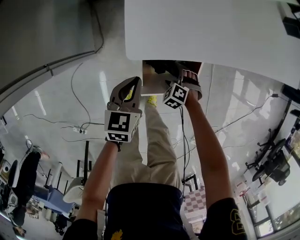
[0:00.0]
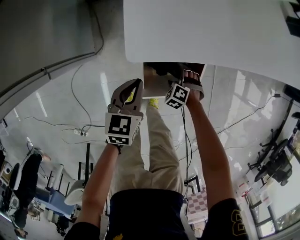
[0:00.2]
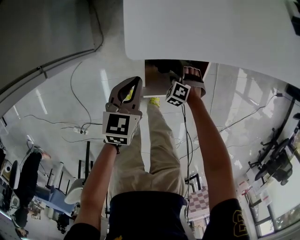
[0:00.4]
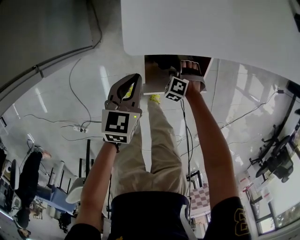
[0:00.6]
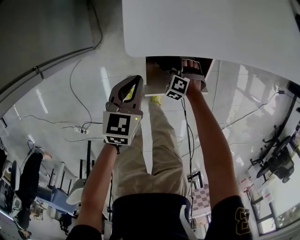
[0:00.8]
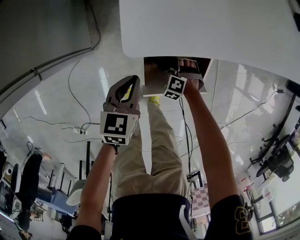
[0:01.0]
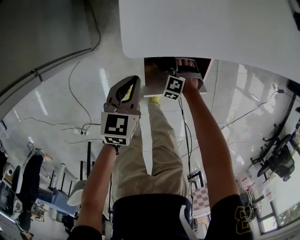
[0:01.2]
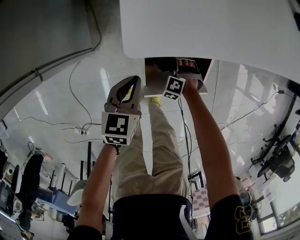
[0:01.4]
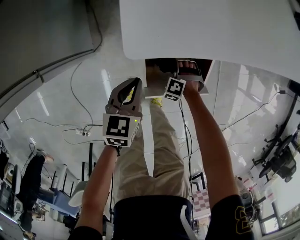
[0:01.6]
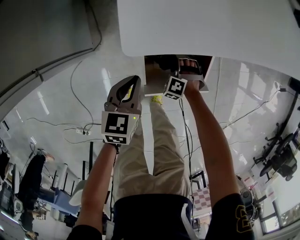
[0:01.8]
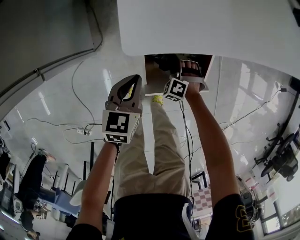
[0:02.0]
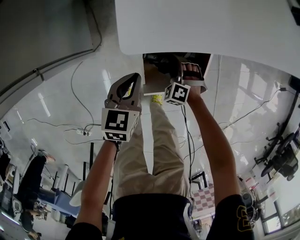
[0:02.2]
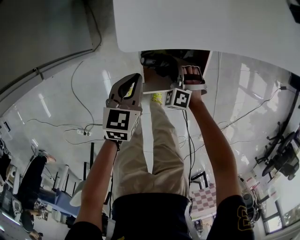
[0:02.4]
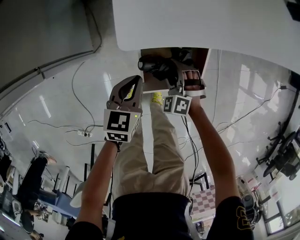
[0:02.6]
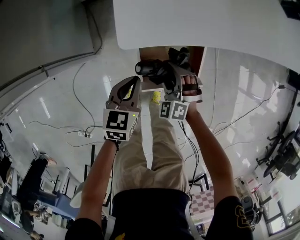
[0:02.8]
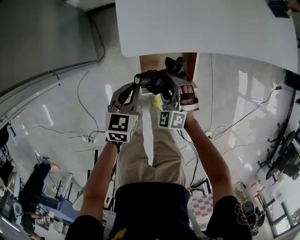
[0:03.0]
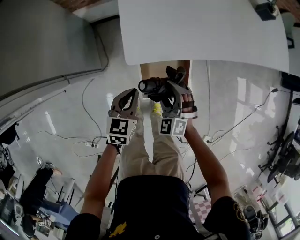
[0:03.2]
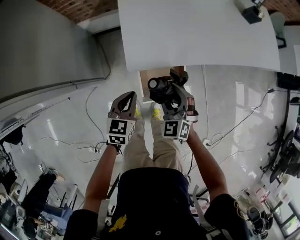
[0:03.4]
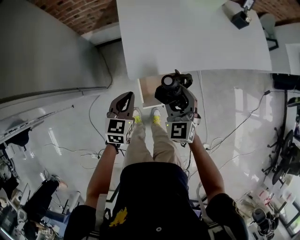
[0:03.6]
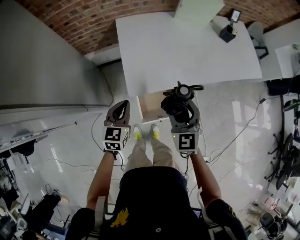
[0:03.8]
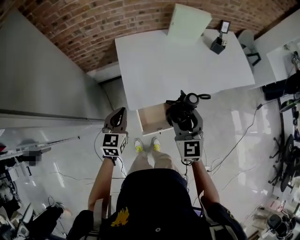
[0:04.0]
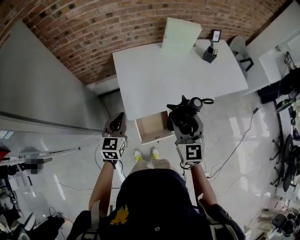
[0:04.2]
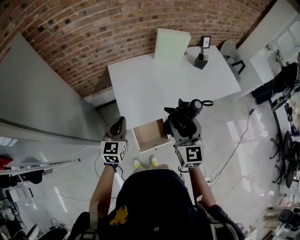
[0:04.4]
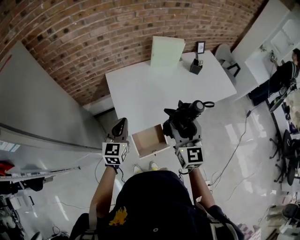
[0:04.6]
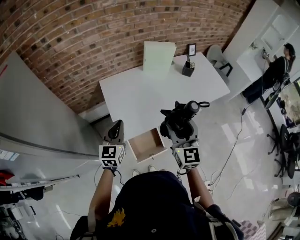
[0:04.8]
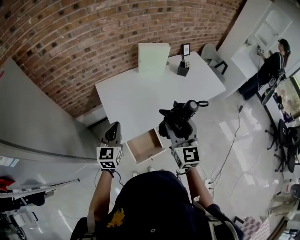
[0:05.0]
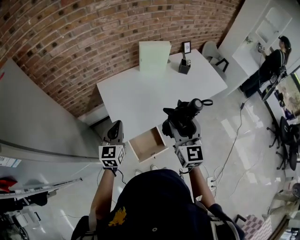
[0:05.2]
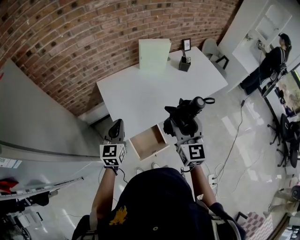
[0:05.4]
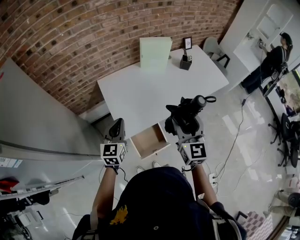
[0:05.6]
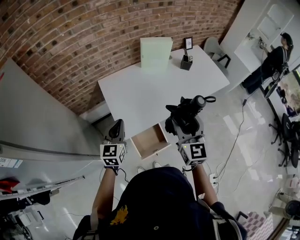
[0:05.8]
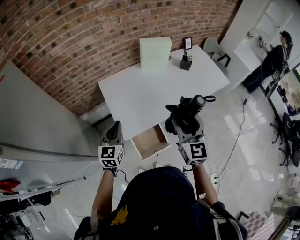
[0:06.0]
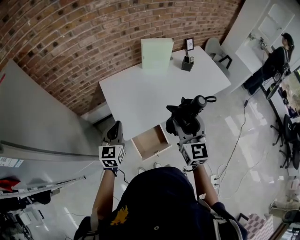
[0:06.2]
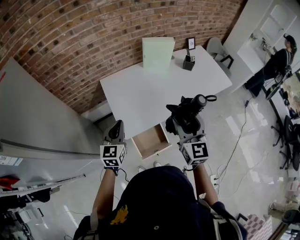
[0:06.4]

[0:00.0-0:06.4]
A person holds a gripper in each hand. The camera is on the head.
0:00.0 to 0:01.6: The grippers both shift downward by some 5 cm. The right gripper turns by approximately 20 degrees.
0:01.6 to 0:03.2: The right gripper goes roughly 35 cm upward, and swivels about 40 degrees; the left gripper shifts roughly 15 cm upward.
0:03.2 to 0:04.8: Both grippers move upward, about 40 cm. The right gripper tips its fingers upward by approximately 40 degrees, while the left gripper changes its angle by approximately 30 degrees.
0:04.8 to 0:06.4: The grippers move only a little.

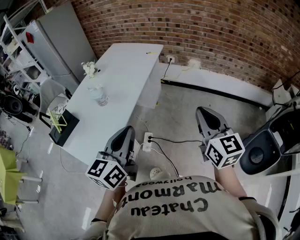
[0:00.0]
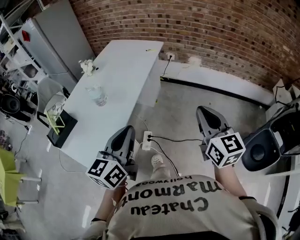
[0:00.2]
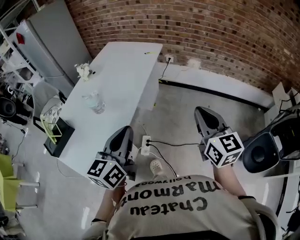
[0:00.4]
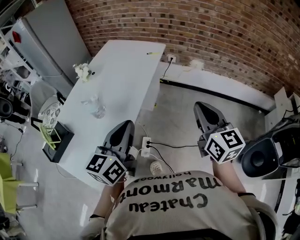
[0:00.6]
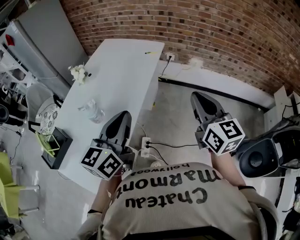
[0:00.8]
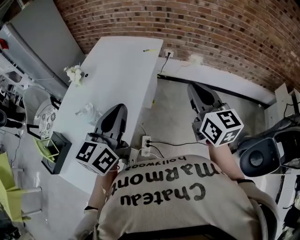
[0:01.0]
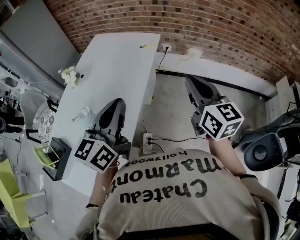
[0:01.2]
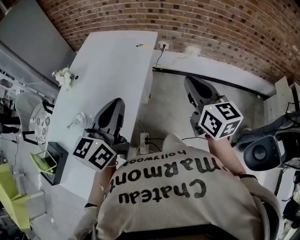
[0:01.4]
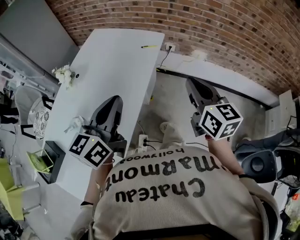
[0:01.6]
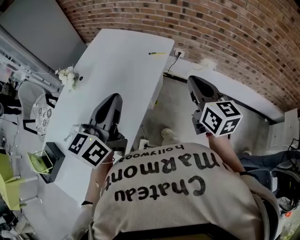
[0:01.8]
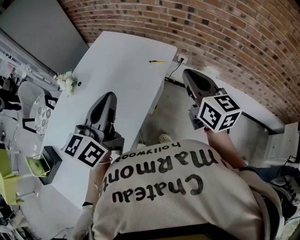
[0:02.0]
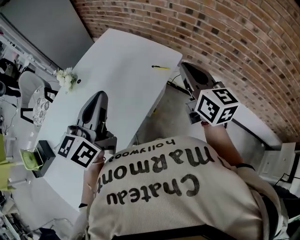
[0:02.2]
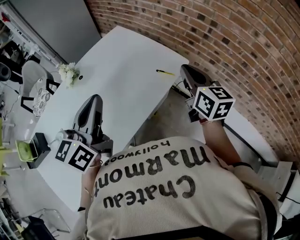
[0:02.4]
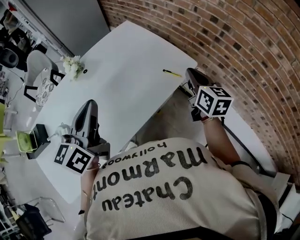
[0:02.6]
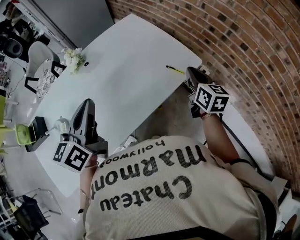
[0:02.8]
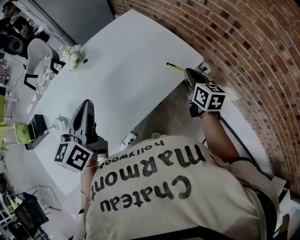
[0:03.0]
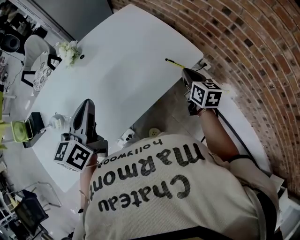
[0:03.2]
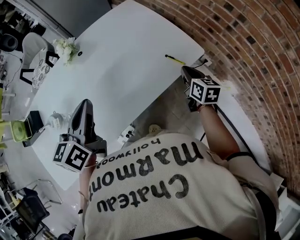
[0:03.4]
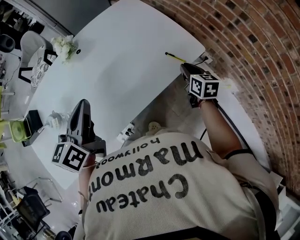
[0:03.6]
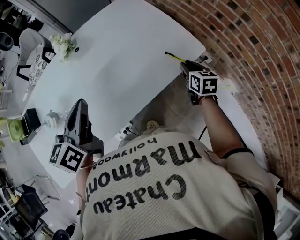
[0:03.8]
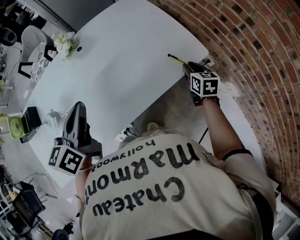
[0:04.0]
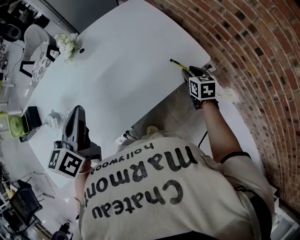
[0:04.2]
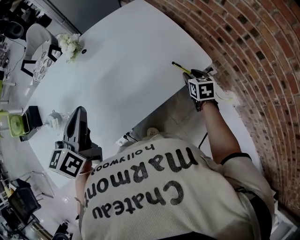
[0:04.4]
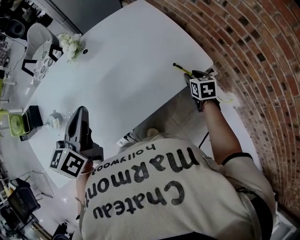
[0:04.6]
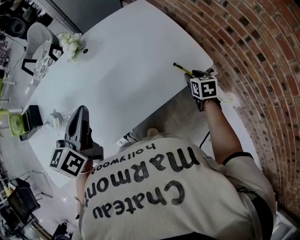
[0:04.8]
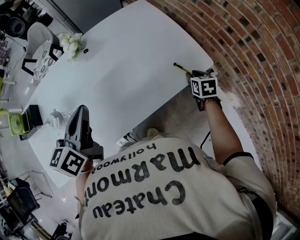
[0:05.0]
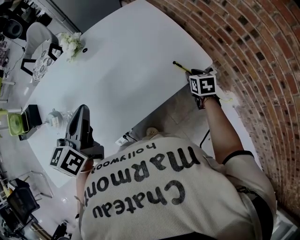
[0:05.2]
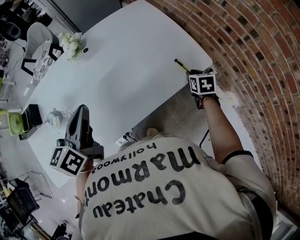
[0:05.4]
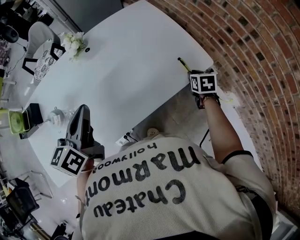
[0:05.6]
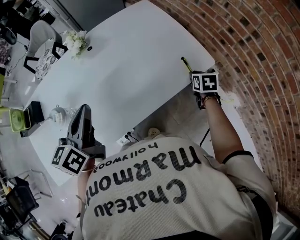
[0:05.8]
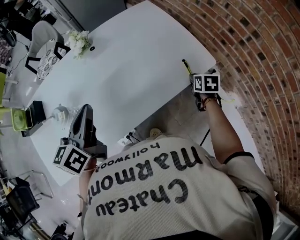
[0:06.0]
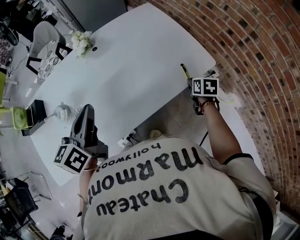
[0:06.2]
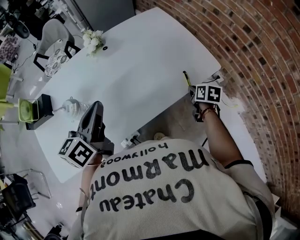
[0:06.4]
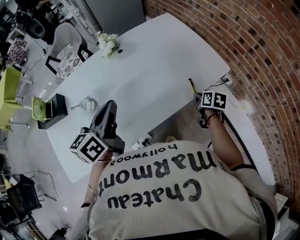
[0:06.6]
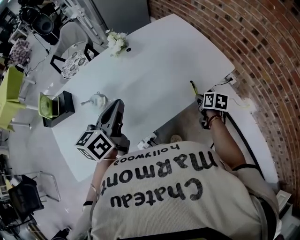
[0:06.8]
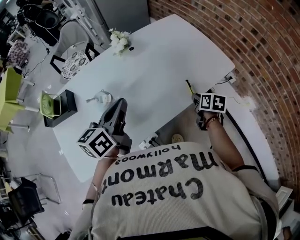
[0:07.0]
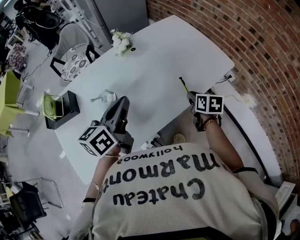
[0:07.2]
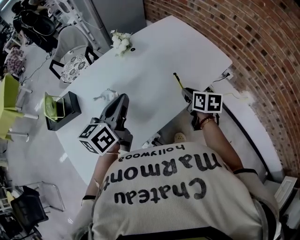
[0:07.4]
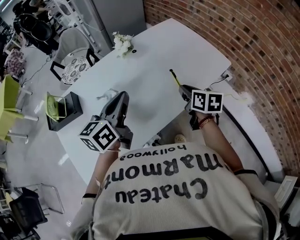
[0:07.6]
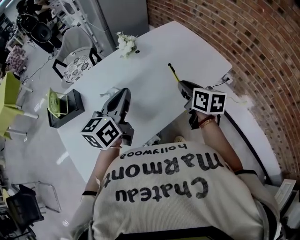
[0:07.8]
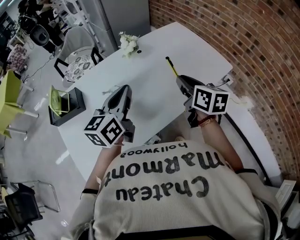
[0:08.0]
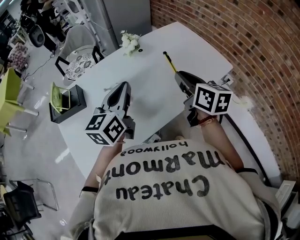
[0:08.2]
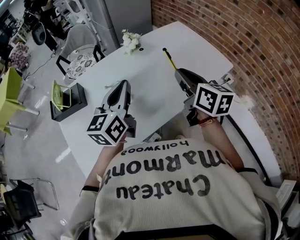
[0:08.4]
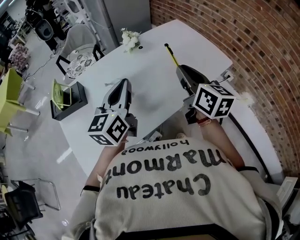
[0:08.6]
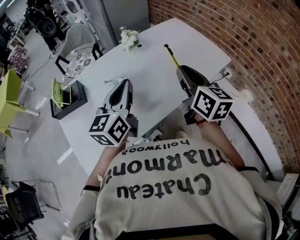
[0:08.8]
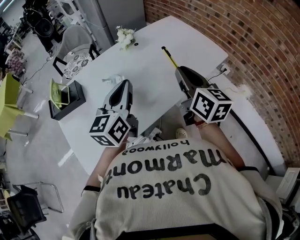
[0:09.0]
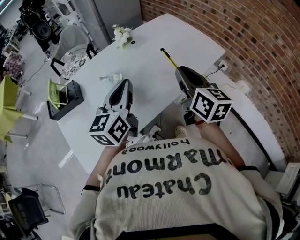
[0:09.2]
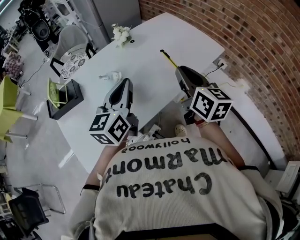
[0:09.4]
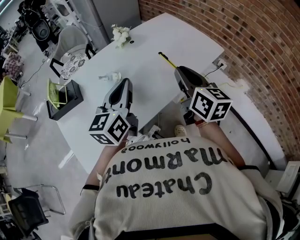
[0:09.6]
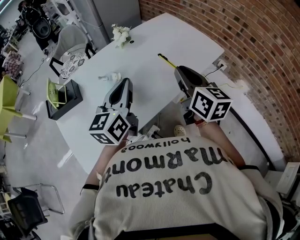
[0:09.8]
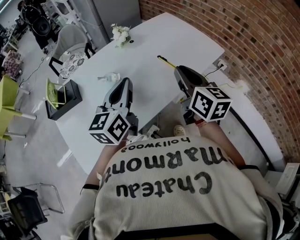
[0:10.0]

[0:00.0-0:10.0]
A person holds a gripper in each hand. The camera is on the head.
0:00.0 to 0:01.4: Both grippers move forward, approximately 35 cm.
0:01.4 to 0:02.8: The right gripper shifts by roughly 40 cm, and swivels about 30 degrees, while the left gripper moves some 20 cm, and rotates about 40 degrees.
0:02.8 to 0:04.2: The left gripper heads downward, covering about 5 cm; the right gripper moves downward, approximately 15 cm, rotates some 30 degrees, and opens up.
0:04.2 to 0:05.8: The right gripper closes its fingers.
0:05.8 to 0:07.2: The left gripper goes approximately 15 cm to the left and backward; the right gripper heads to the left and backward, covering approximately 30 cm.
0:07.2 to 0:08.6: The right gripper moves upward and to the left, approximately 25 cm, and points its fingers about 30 degrees further upward. The left gripper is displaced upward by about 5 cm, and turns by roughly 20 degrees.
0:08.6 to 0:10.0: The right gripper changes place by some 5 cm.

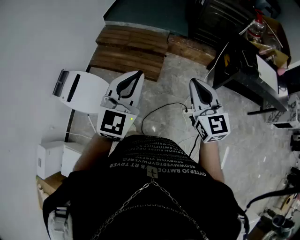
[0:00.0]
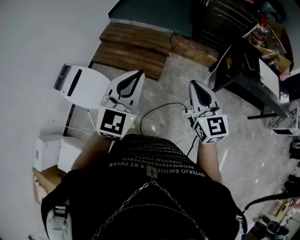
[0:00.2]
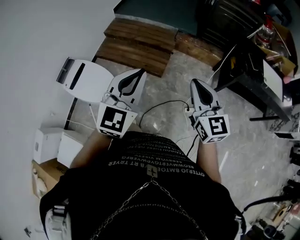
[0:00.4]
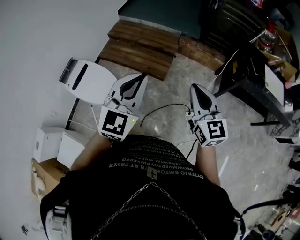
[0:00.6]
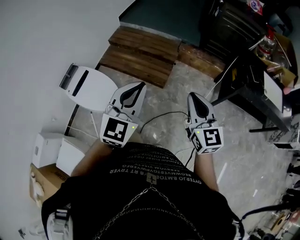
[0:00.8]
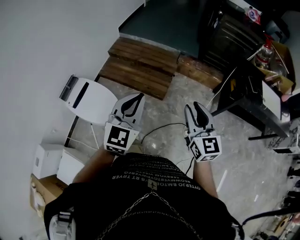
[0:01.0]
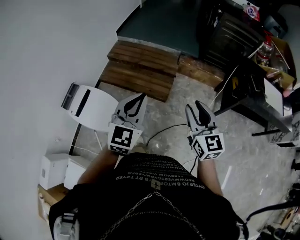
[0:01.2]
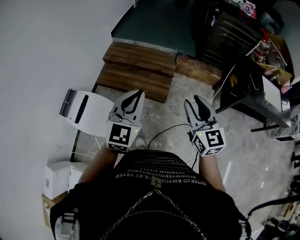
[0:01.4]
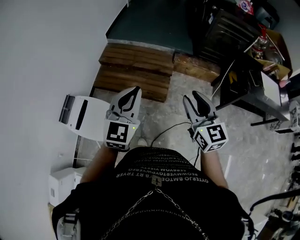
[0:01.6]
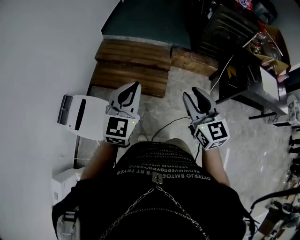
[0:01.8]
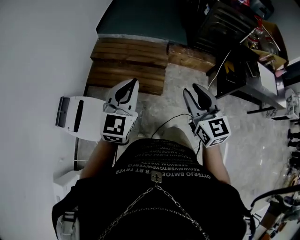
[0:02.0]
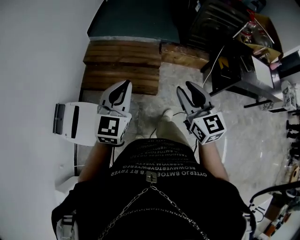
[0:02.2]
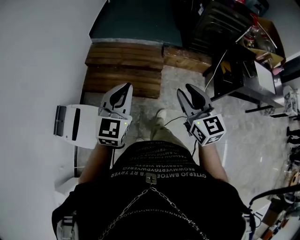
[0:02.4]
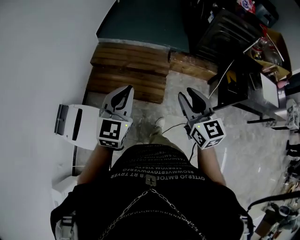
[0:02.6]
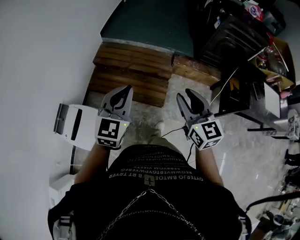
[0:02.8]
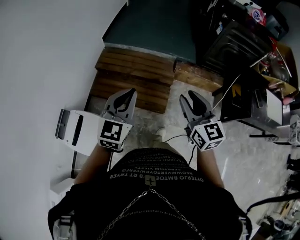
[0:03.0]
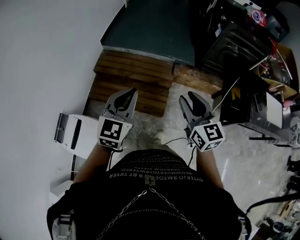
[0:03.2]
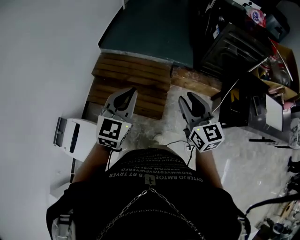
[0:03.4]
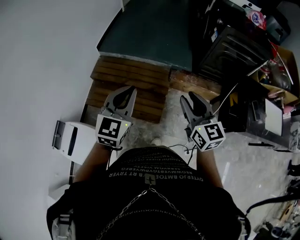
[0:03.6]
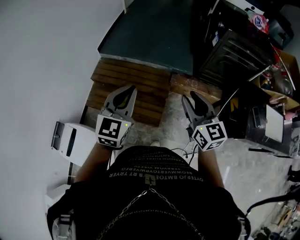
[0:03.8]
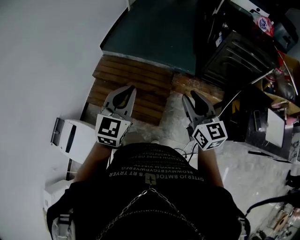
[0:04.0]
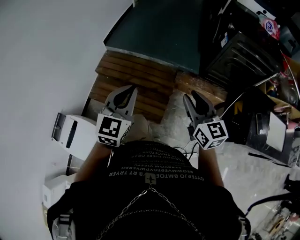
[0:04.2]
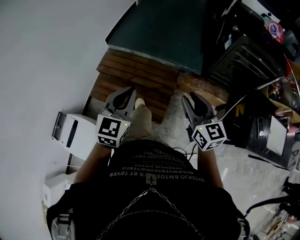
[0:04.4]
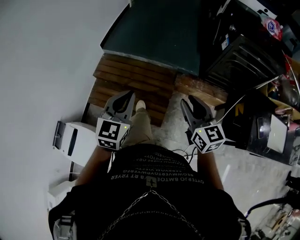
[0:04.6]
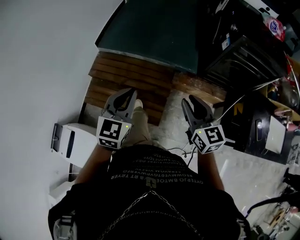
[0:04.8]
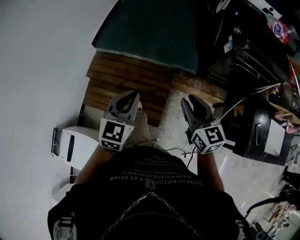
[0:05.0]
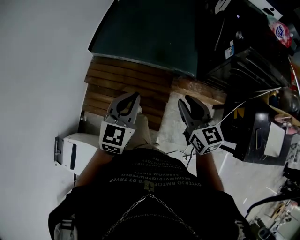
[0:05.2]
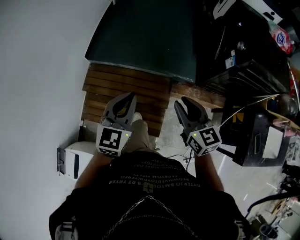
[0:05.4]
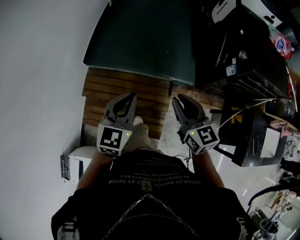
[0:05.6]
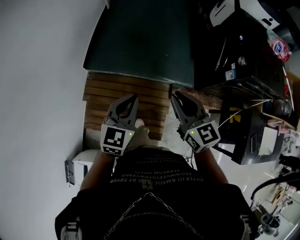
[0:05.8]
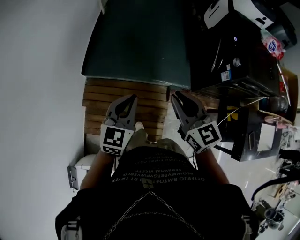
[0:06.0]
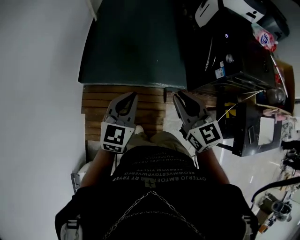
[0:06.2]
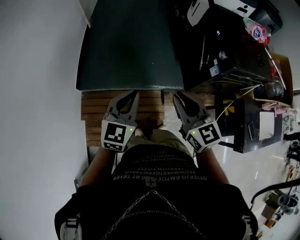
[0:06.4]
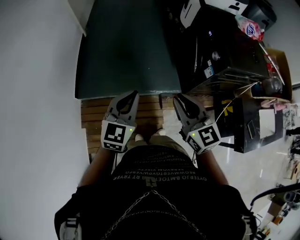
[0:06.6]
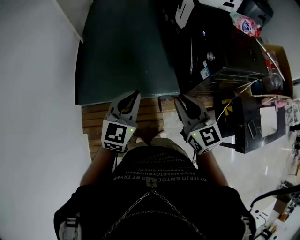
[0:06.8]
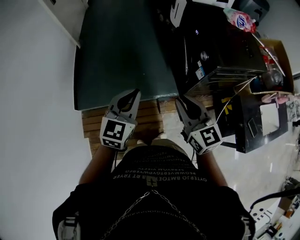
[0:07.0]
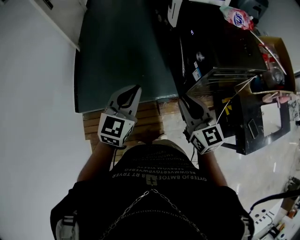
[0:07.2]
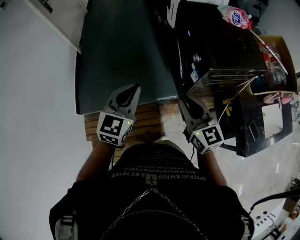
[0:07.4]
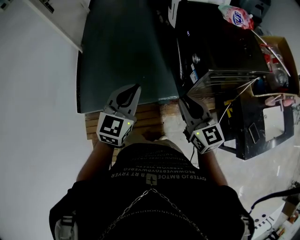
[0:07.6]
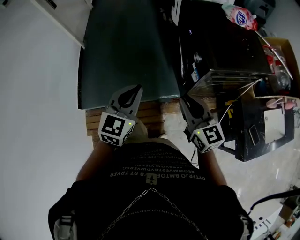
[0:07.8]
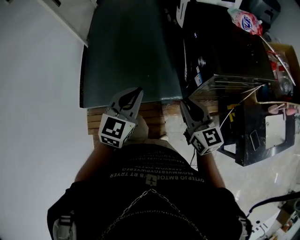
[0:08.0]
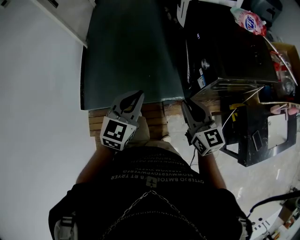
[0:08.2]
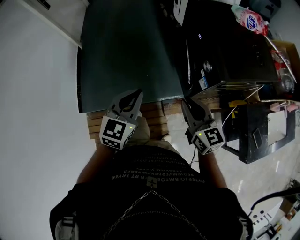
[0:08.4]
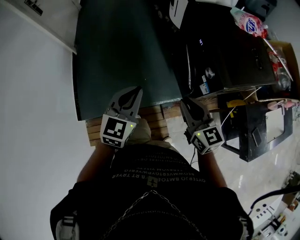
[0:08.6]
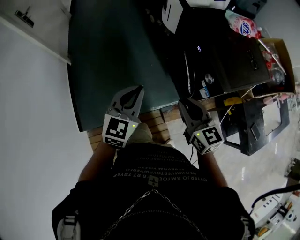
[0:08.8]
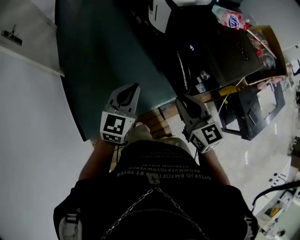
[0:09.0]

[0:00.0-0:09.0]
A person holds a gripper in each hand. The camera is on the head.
0:00.0 to 0:01.6: The right gripper shifts approximately 20 cm to the left and forward, and opens up. Meanwhile the left gripper is displaced forward and to the left by approximately 20 cm.
0:01.6 to 0:03.0: The two grippers go approximately 20 cm forward.
0:03.0 to 0:04.4: Both grippers move forward and to the right, approximately 20 cm.
0:04.4 to 0:06.0: The pair of grippers is taken forward, roughly 50 cm.
0:06.0 to 0:07.6: The right gripper heads to the right, covering some 30 cm, and turns by roughly 20 degrees; the left gripper travels to the right and forward by some 30 cm, and changes its angle by approximately 20 degrees.
0:07.6 to 0:09.0: Both grippers travel together forward and to the left, approximately 25 cm.
